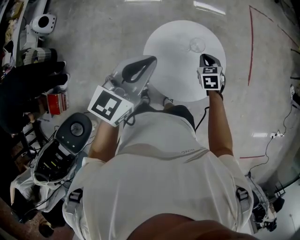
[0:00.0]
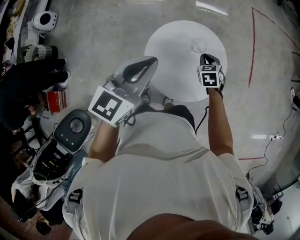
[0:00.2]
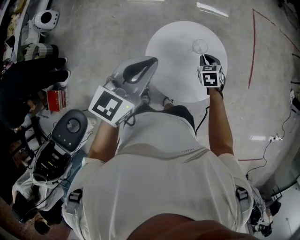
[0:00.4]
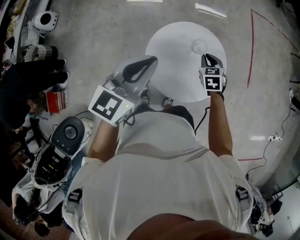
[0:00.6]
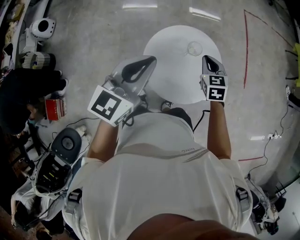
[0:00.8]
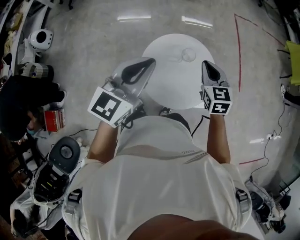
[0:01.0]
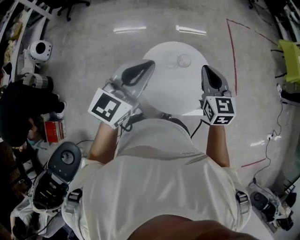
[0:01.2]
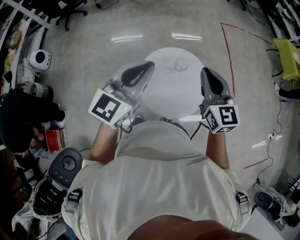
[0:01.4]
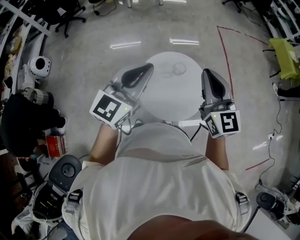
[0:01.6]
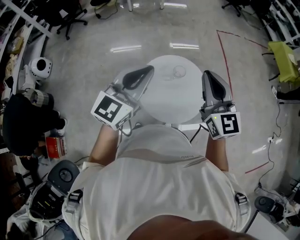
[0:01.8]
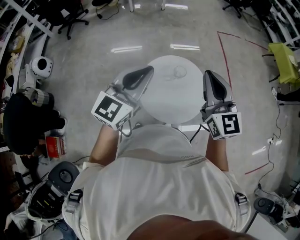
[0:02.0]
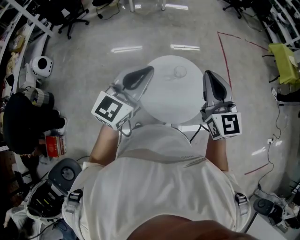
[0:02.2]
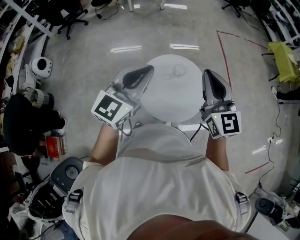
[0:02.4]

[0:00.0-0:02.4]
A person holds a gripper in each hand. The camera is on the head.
0:00.0 to 0:01.2: The left gripper heads upward, covering about 10 cm. The right gripper shifts some 25 cm upward, and points its fingers roughly 30 degrees further upward.
0:01.2 to 0:02.4: The left gripper moves approximately 5 cm. Meanwhile the right gripper shifts about 15 cm upward and backward, and rotates some 20 degrees.

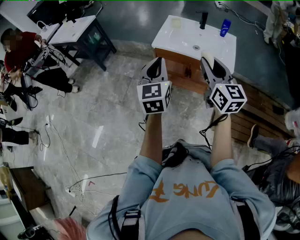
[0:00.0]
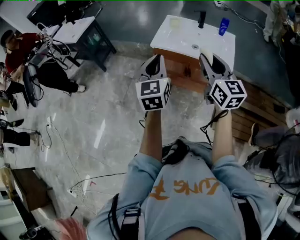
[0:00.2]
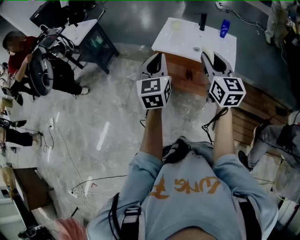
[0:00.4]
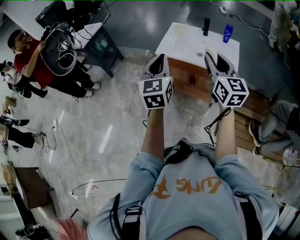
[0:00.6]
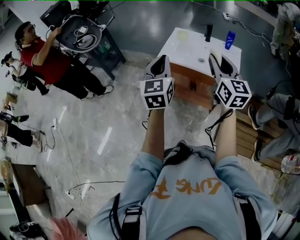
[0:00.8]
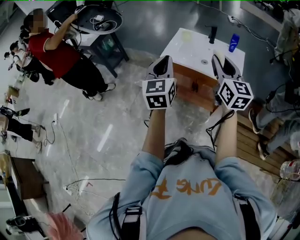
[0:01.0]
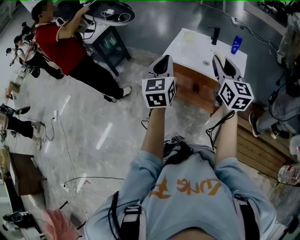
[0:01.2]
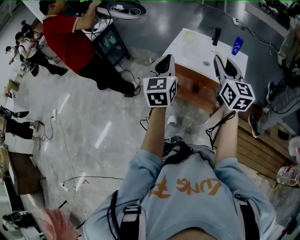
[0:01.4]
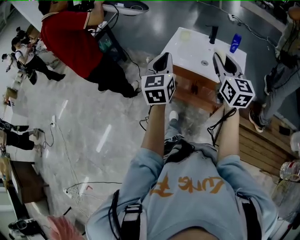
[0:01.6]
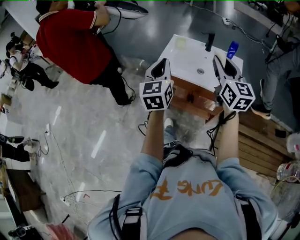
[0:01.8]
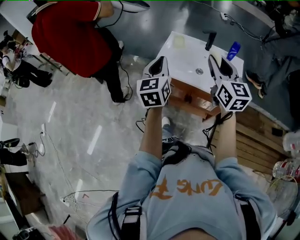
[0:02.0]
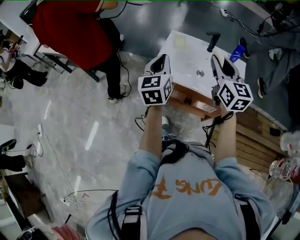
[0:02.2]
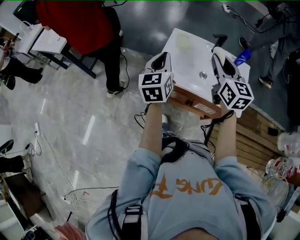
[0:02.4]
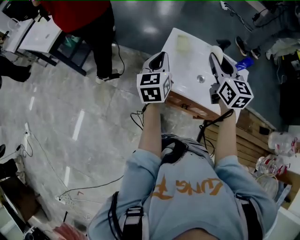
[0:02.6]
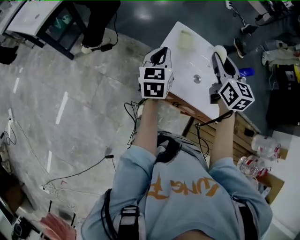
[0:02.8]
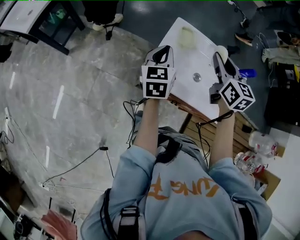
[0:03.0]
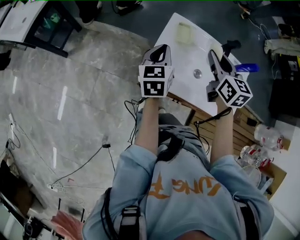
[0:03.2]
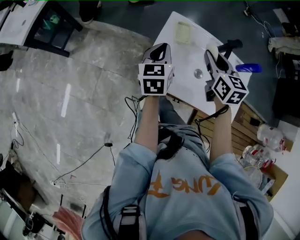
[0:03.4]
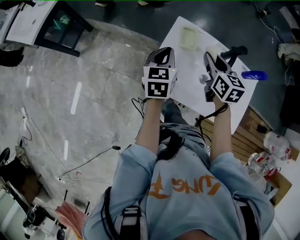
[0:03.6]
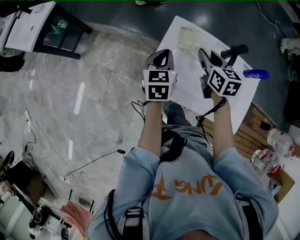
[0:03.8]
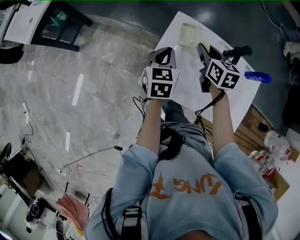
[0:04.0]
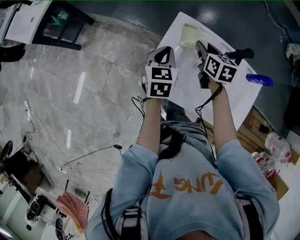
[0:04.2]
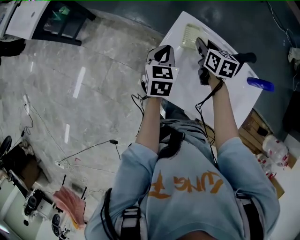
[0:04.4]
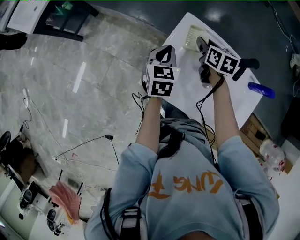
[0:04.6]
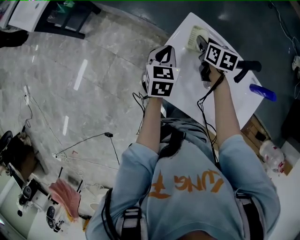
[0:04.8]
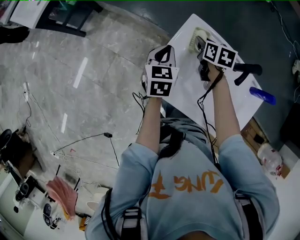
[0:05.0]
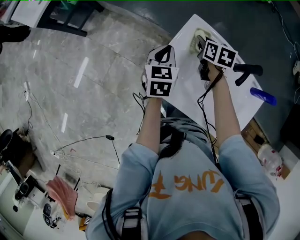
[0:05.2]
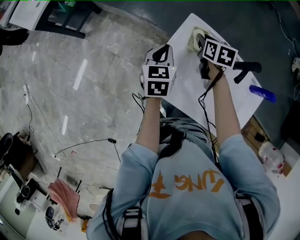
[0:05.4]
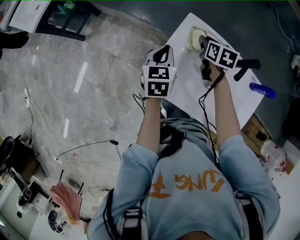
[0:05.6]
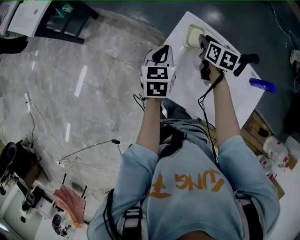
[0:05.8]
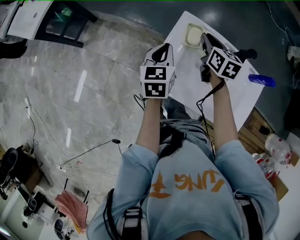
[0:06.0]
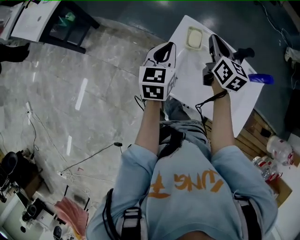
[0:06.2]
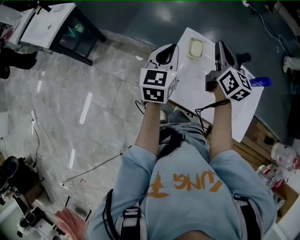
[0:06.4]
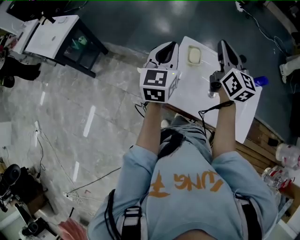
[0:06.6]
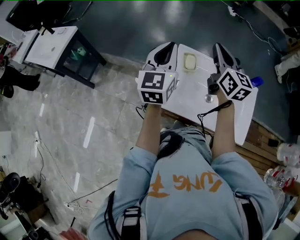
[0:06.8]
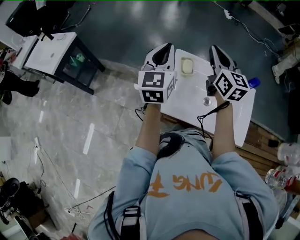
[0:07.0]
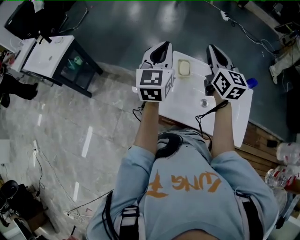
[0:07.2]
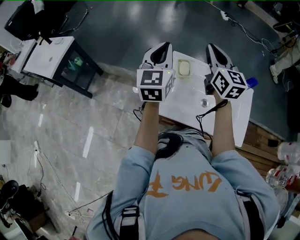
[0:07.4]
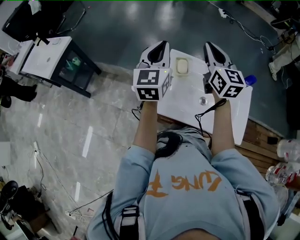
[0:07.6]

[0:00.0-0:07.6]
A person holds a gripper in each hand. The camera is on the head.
0:00.0 to 0:01.6: The left gripper heads forward, covering roughly 10 cm; the right gripper moves forward and to the right, approximately 15 cm.
0:01.6 to 0:03.0: The two grippers travel together, forward, approximately 40 cm. The right gripper changes its angle by approximately 20 degrees. The left gripper goes approximately 20 cm downward, and changes its angle by about 20 degrees.
0:03.0 to 0:04.6: The left gripper shifts roughly 10 cm downward and forward. Meanwhile the right gripper moves downward and forward, some 25 cm, and changes its angle by approximately 30 degrees.
0:04.6 to 0:06.0: The right gripper heads upward, covering some 5 cm.
0:06.0 to 0:07.6: The two grippers go about 25 cm upward. The right gripper tips its fingers upward by about 30 degrees. The left gripper swivels roughly 30 degrees.

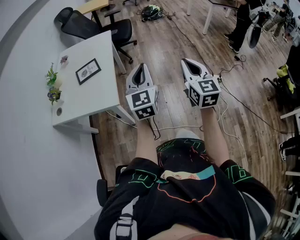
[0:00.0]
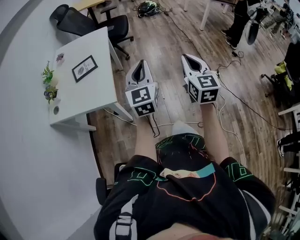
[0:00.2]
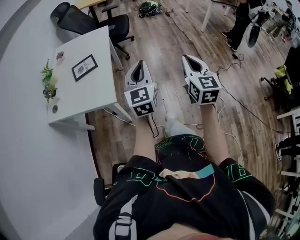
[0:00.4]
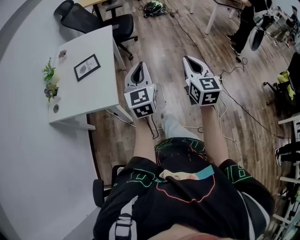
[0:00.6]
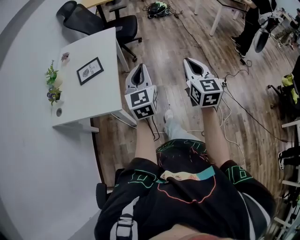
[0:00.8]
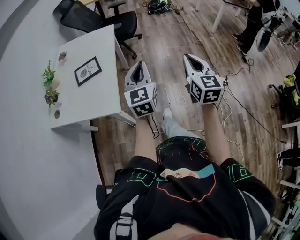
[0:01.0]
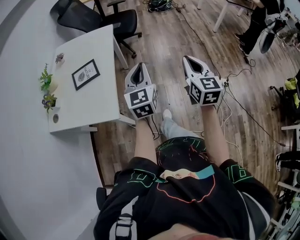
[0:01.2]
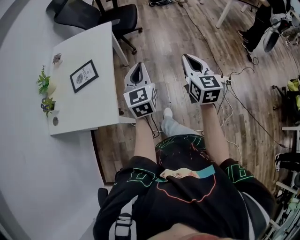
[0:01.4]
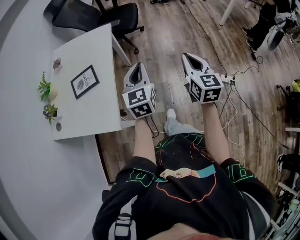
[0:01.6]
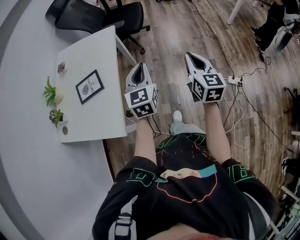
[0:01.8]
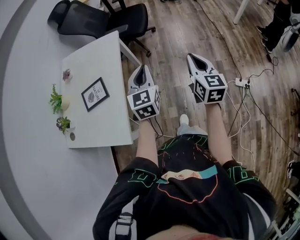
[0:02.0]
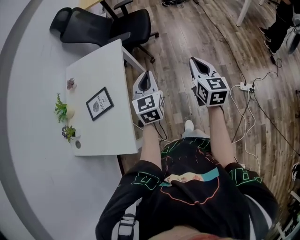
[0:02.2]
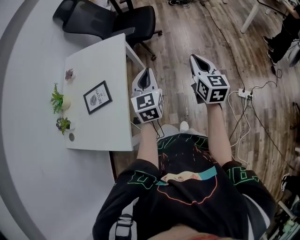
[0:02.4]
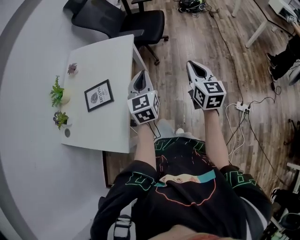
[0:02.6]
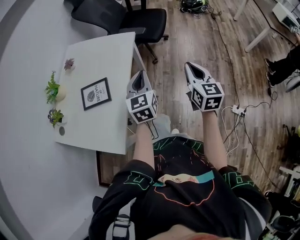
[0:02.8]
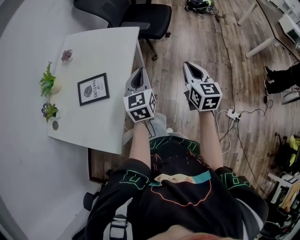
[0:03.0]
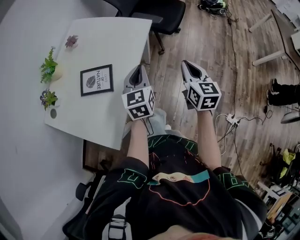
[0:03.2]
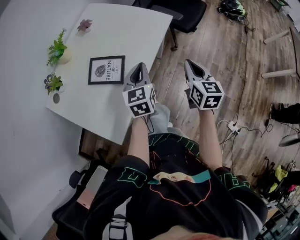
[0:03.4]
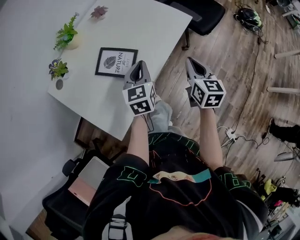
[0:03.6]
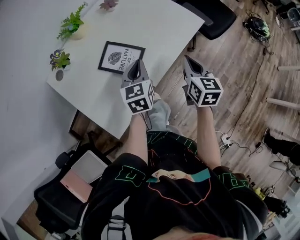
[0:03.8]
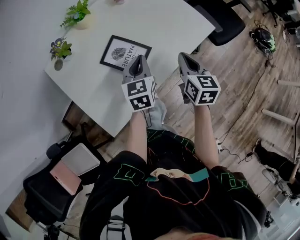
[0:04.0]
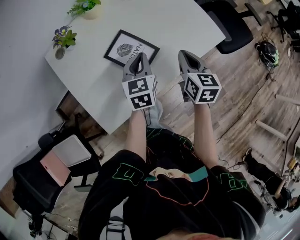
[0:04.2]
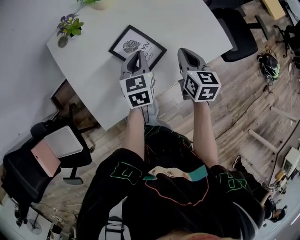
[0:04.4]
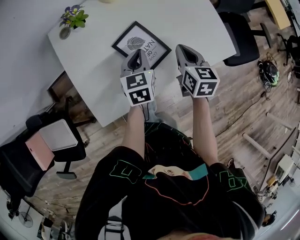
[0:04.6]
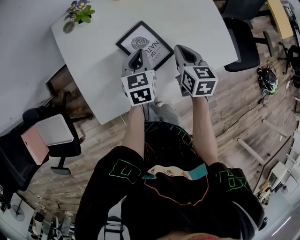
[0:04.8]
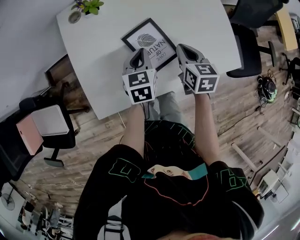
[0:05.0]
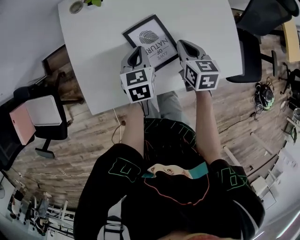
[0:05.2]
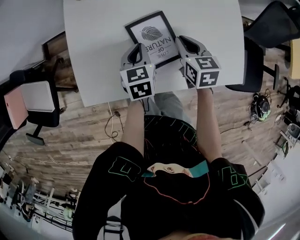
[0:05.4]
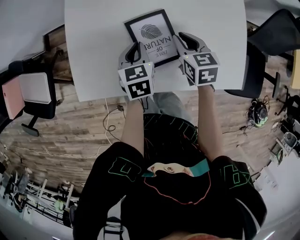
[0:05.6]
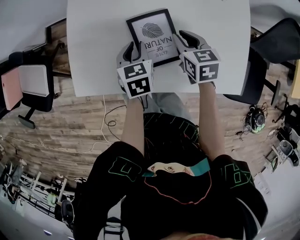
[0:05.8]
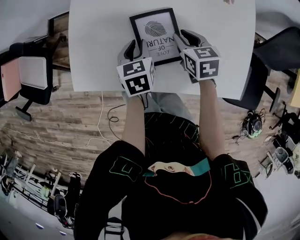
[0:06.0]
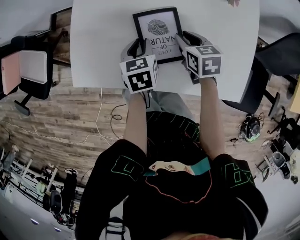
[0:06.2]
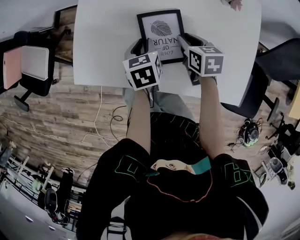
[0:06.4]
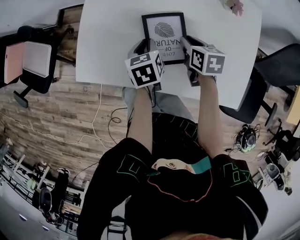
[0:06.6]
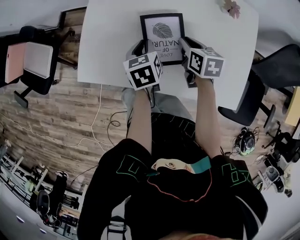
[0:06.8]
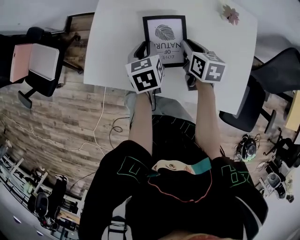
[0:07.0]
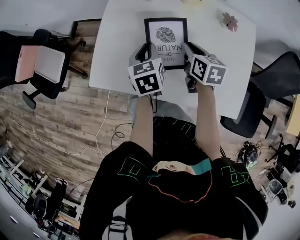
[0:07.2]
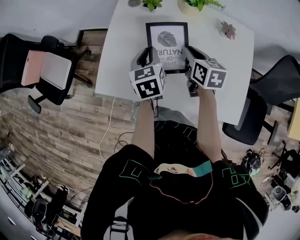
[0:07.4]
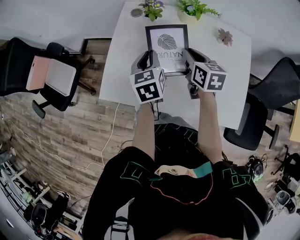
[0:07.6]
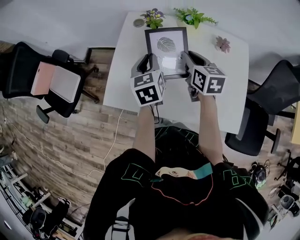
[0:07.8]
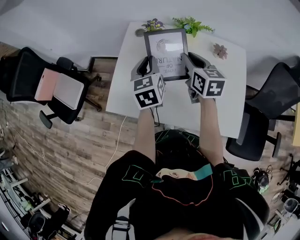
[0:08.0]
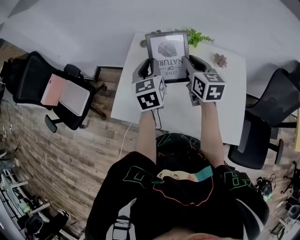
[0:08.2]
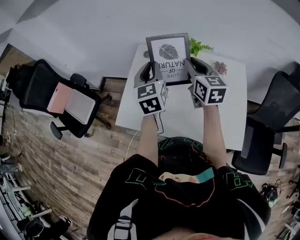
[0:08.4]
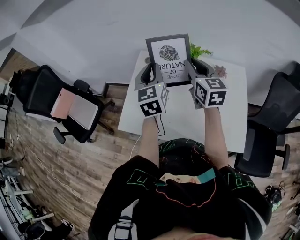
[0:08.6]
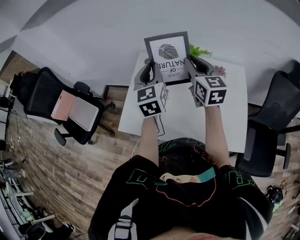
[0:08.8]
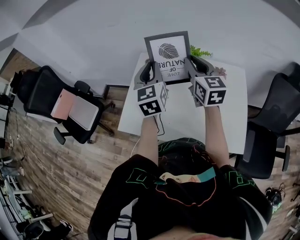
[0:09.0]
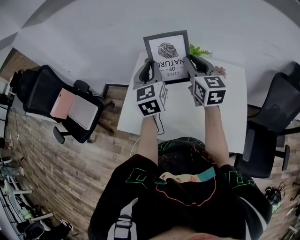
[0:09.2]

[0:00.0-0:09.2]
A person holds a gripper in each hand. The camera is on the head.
0:00.0 to 0:01.6: The grippers both shift forward by approximately 25 cm.
0:01.6 to 0:03.0: The grippers both shift forward by roughly 20 cm.
0:03.0 to 0:04.6: The left gripper changes place by some 35 cm, and rotates some 50 degrees. The right gripper changes place by about 40 cm, and rotates approximately 60 degrees.
0:04.6 to 0:06.2: The left gripper heads downward, covering roughly 10 cm, rotates approximately 40 degrees, and opens up; the right gripper changes place by approximately 15 cm, rotates approximately 50 degrees, and opens.
0:06.2 to 0:07.6: The grippers both shift upward by some 15 cm. The right gripper changes its angle by approximately 20 degrees. The left gripper changes its angle by some 20 degrees.
0:07.6 to 0:09.2: Both grippers travel together upward, roughly 20 cm. The right gripper changes its angle by roughly 30 degrees. Meanwhile the left gripper changes its angle by about 30 degrees.

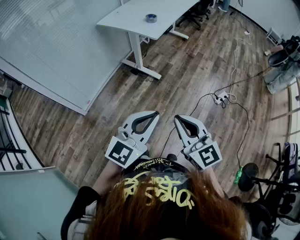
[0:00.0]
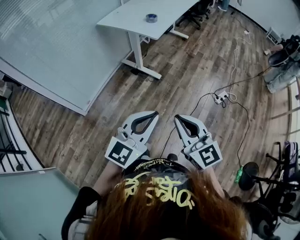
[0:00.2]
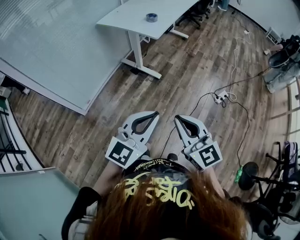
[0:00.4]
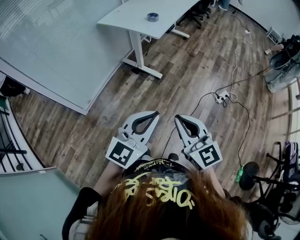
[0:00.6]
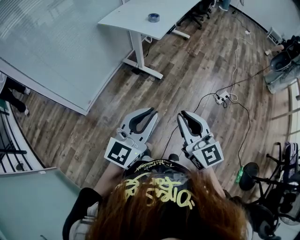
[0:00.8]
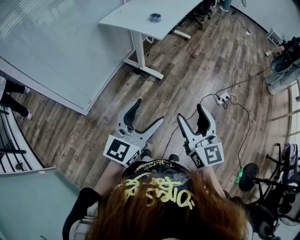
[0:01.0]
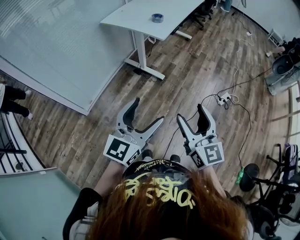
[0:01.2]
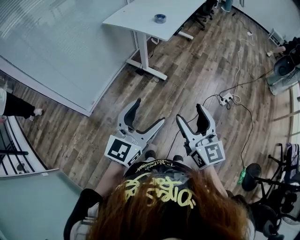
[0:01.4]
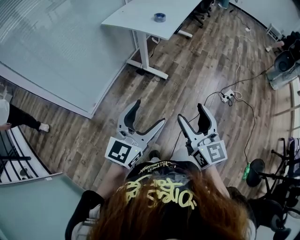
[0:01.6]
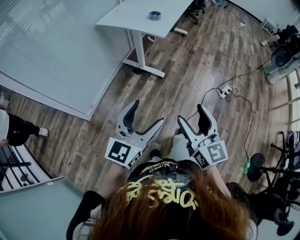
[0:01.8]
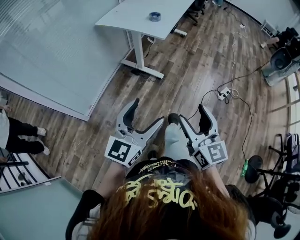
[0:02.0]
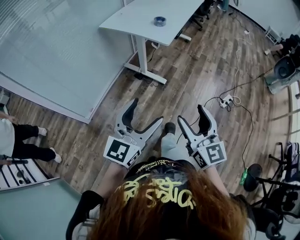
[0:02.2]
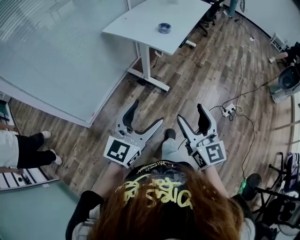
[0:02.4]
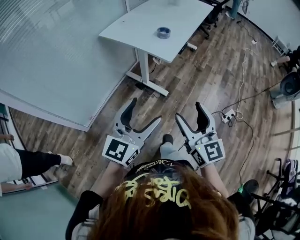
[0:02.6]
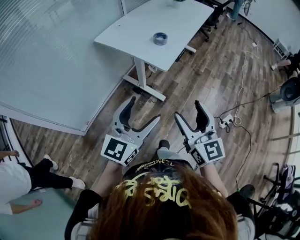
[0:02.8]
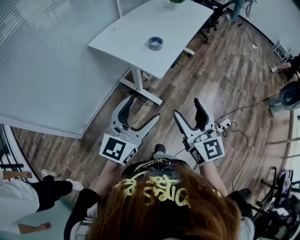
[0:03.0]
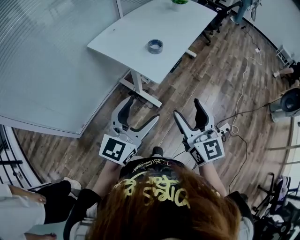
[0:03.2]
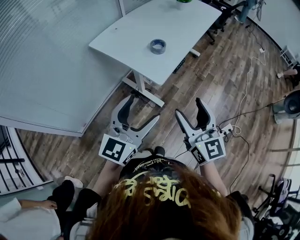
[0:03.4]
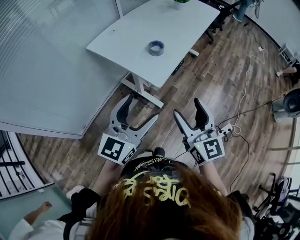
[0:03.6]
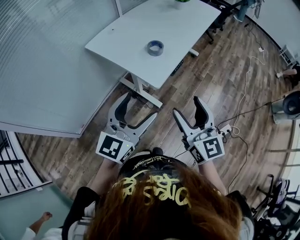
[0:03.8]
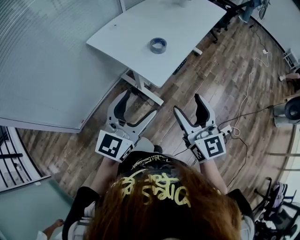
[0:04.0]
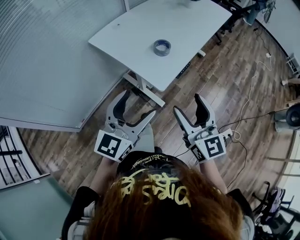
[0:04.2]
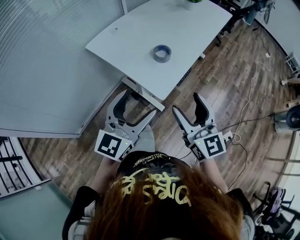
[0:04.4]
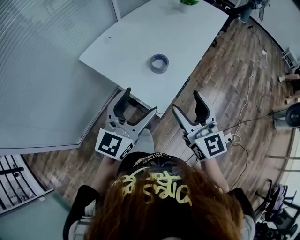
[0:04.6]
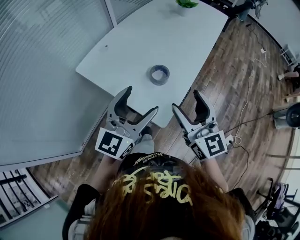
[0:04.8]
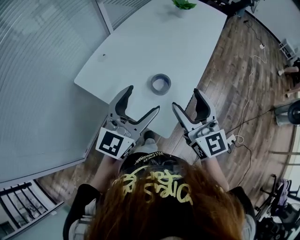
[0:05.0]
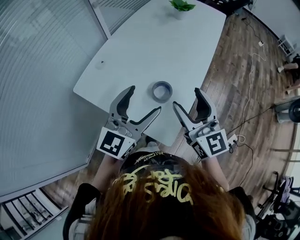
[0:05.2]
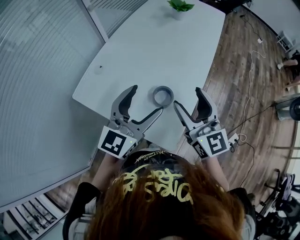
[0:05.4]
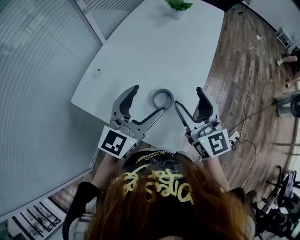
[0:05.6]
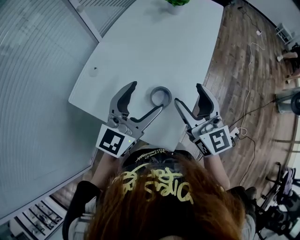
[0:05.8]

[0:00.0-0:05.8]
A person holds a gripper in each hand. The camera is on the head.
0:00.0 to 0:01.4: The right gripper shifts by about 5 cm, and opens up, while the left gripper moves to the left, about 10 cm, and opens up.
0:01.4 to 0:02.8: The two grippers go about 25 cm forward.
0:02.8 to 0:04.4: The two grippers go some 20 cm forward.
0:04.4 to 0:05.8: Both grippers travel together forward, roughly 25 cm.
